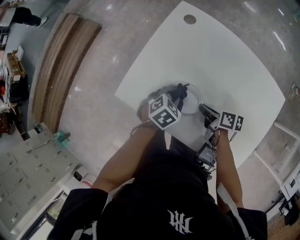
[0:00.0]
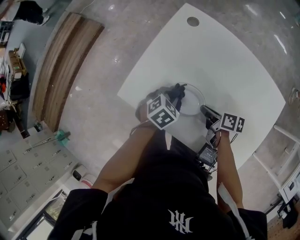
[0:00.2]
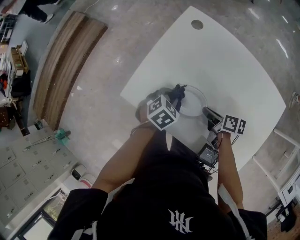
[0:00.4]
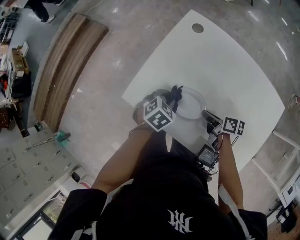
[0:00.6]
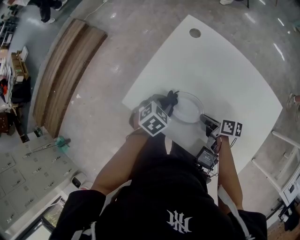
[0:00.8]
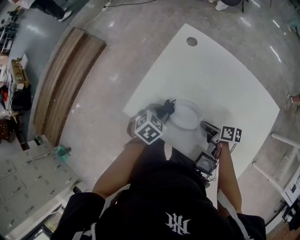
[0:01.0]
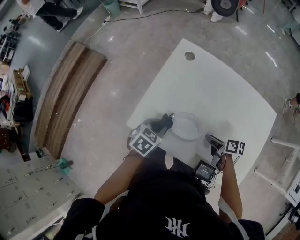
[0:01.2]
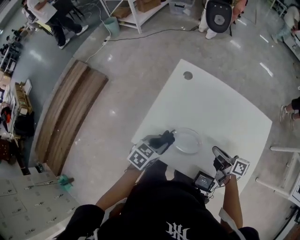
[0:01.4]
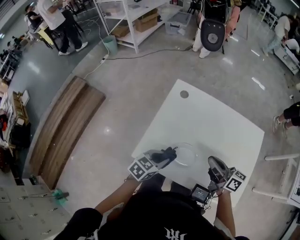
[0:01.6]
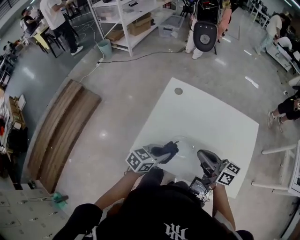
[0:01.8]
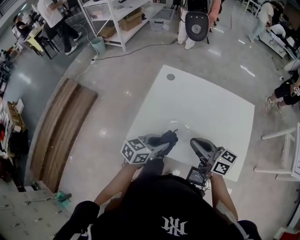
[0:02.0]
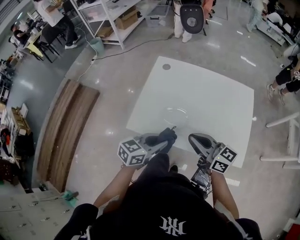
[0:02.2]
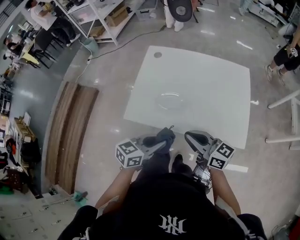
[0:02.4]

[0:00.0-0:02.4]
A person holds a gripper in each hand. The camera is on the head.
0:00.0 to 0:01.2: The left gripper travels to the left and upward by roughly 10 cm.
0:01.2 to 0:02.4: The right gripper shifts about 30 cm upward and backward, tilts its fingers approximately 30 degrees upward, and closes up, while the left gripper goes roughly 30 cm backward, upward and to the right, and points its fingers some 30 degrees further upward.

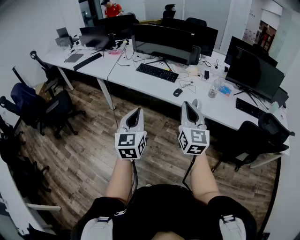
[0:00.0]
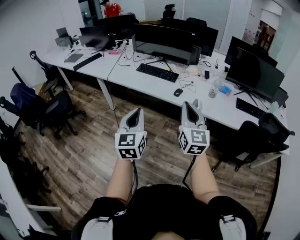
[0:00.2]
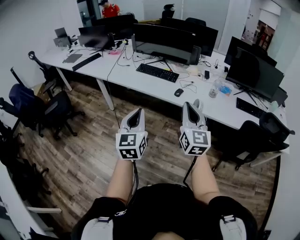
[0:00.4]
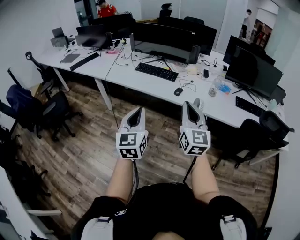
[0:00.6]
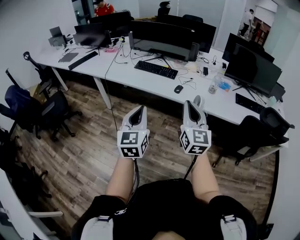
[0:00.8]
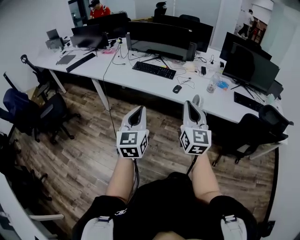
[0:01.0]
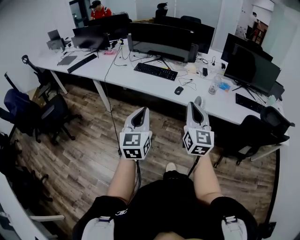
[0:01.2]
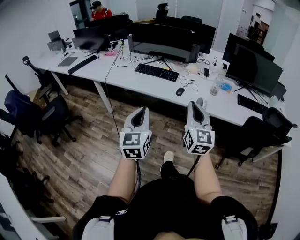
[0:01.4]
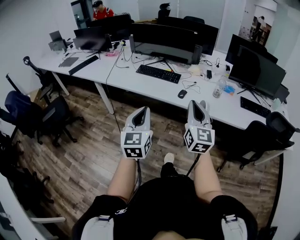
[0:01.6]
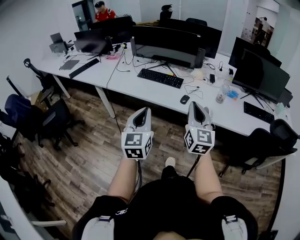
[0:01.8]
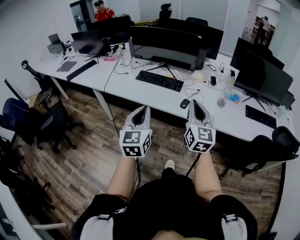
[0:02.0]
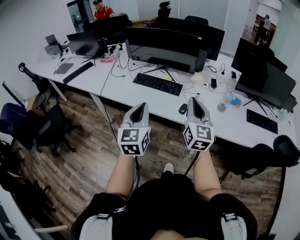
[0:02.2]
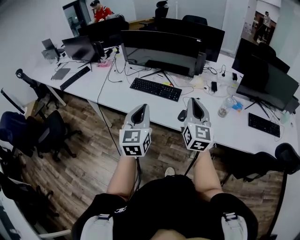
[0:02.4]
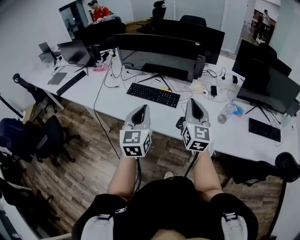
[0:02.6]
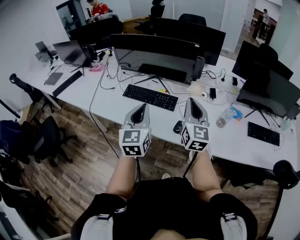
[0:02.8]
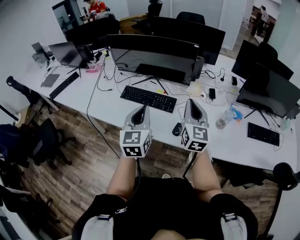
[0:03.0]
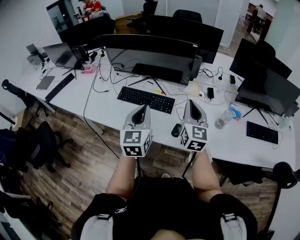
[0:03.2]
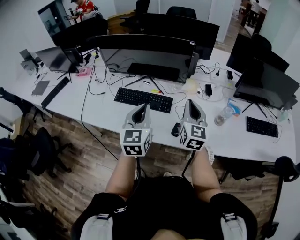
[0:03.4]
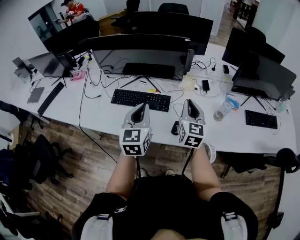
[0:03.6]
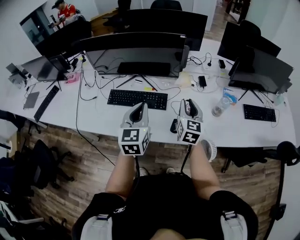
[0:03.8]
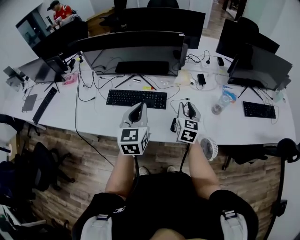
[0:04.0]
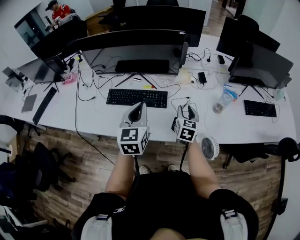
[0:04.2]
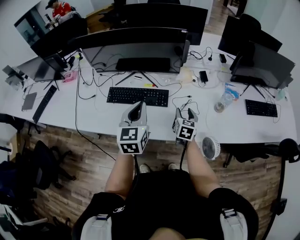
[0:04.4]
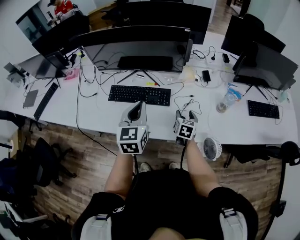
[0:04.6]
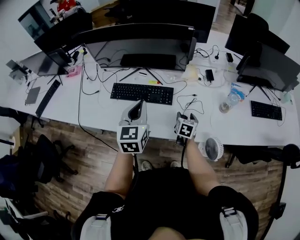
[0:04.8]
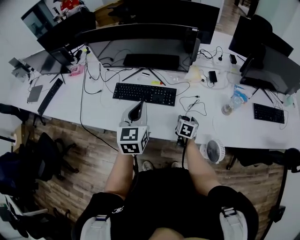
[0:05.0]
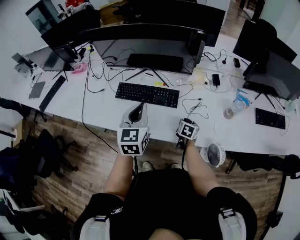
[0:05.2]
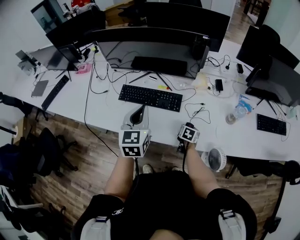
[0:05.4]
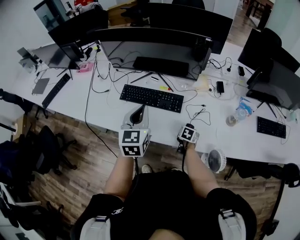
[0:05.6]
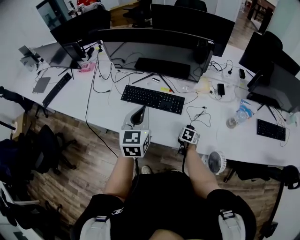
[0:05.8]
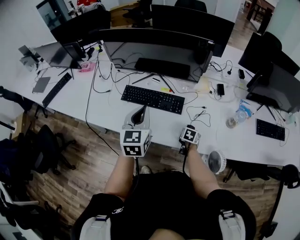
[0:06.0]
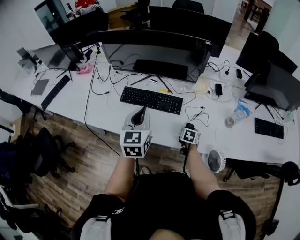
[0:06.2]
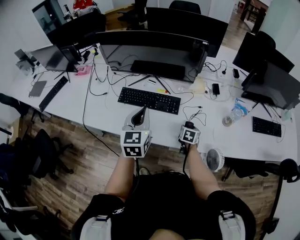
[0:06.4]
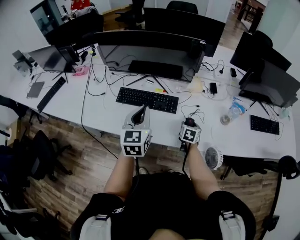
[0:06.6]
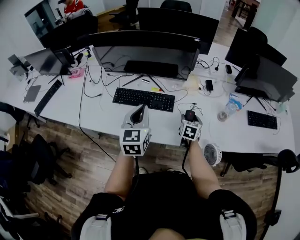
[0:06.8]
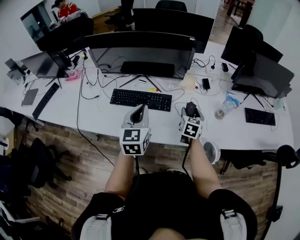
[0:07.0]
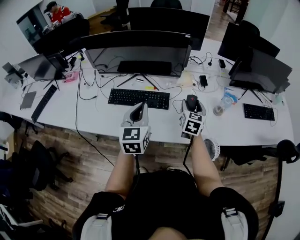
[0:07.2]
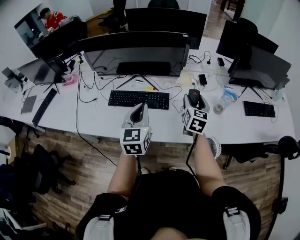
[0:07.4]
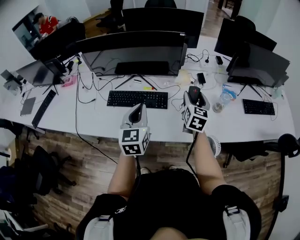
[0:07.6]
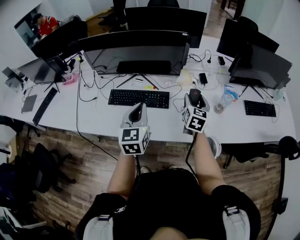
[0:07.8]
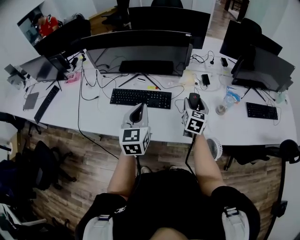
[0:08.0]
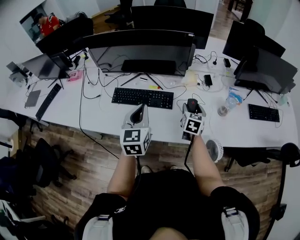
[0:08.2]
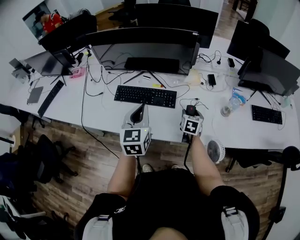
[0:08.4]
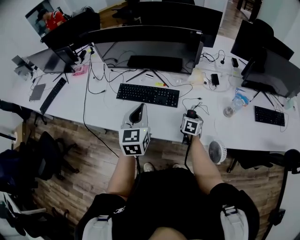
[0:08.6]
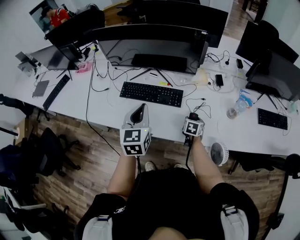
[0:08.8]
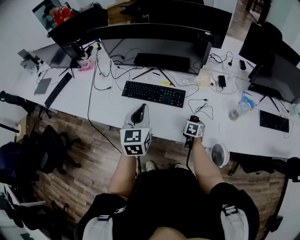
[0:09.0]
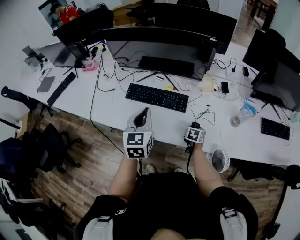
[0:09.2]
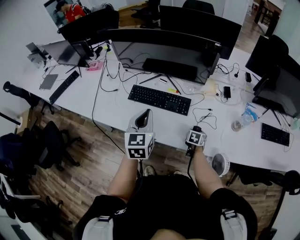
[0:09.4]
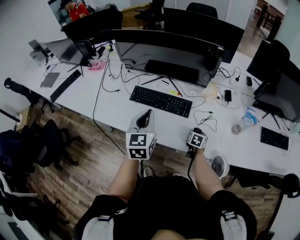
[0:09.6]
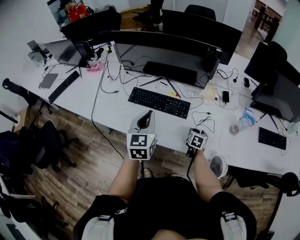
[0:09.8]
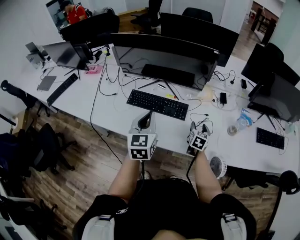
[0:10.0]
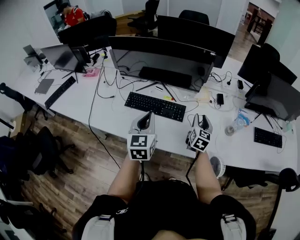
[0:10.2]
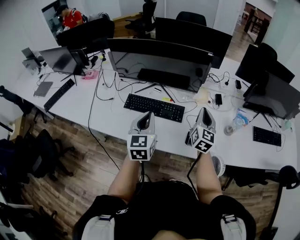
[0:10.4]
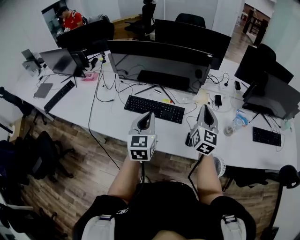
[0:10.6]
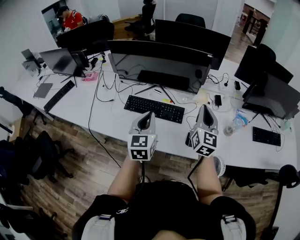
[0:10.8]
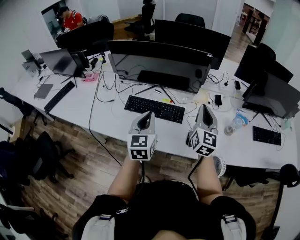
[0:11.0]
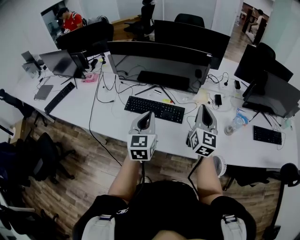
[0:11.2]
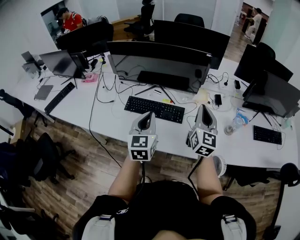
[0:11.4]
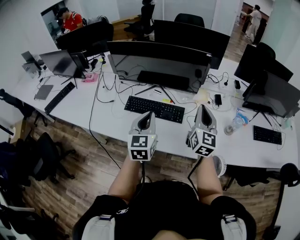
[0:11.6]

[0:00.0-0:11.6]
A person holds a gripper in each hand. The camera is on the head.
0:00.0 to 0:01.4: The grippers make only small movements.
0:01.4 to 0:02.8: The two grippers go about 40 cm forward.
0:02.8 to 0:04.4: The left gripper heads forward and downward, covering some 15 cm. Meanwhile the right gripper heads downward, covering approximately 25 cm, angles its fingers downward, by approximately 30 degrees, and opens.
0:04.4 to 0:05.8: The left gripper goes about 5 cm to the left. The right gripper moves downward, approximately 20 cm, and turns by approximately 30 degrees.
0:05.8 to 0:07.2: The right gripper moves upward, roughly 25 cm, and points its fingers approximately 40 degrees further upward.
0:07.2 to 0:08.8: The right gripper heads downward, covering about 20 cm, and turns by approximately 30 degrees.
0:08.8 to 0:10.2: The right gripper heads upward, covering roughly 20 cm, tips its fingers upward by some 30 degrees, and closes its fingers.
0:10.2 to 0:11.6: The right gripper goes some 15 cm upward, and closes up.

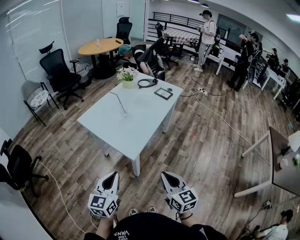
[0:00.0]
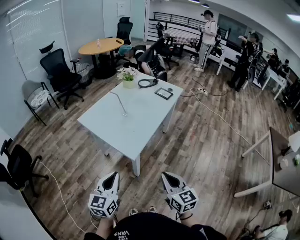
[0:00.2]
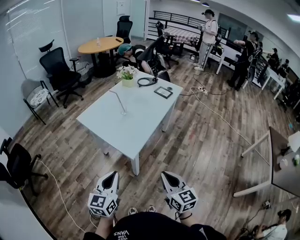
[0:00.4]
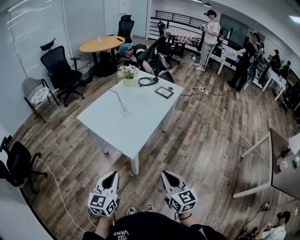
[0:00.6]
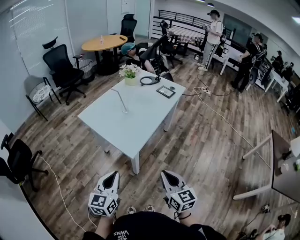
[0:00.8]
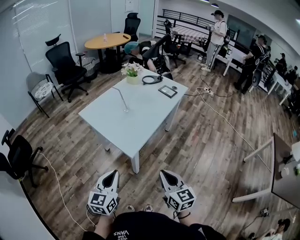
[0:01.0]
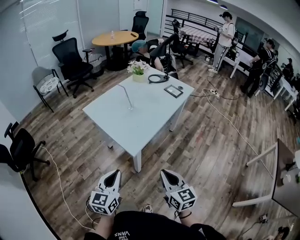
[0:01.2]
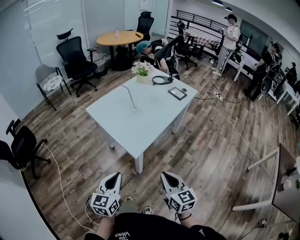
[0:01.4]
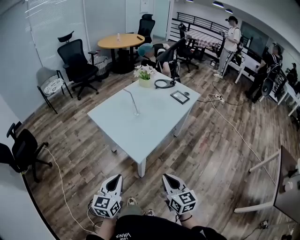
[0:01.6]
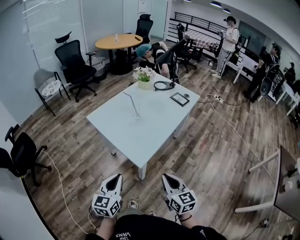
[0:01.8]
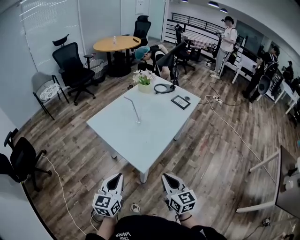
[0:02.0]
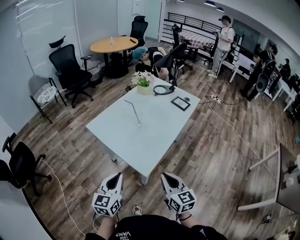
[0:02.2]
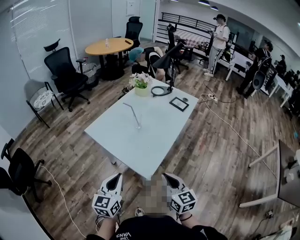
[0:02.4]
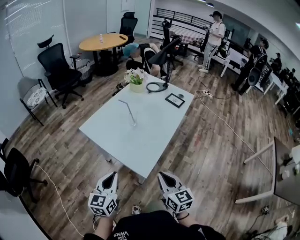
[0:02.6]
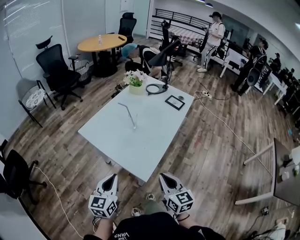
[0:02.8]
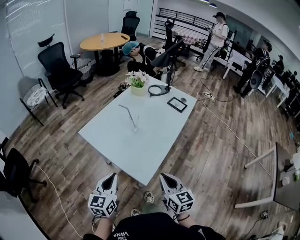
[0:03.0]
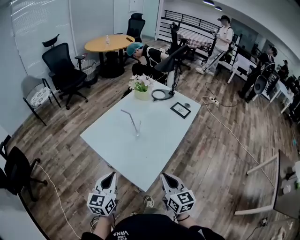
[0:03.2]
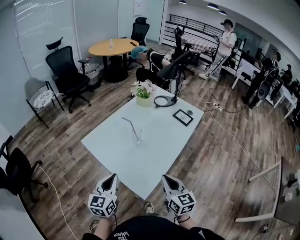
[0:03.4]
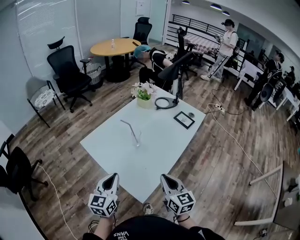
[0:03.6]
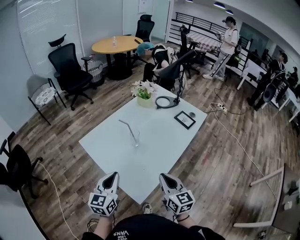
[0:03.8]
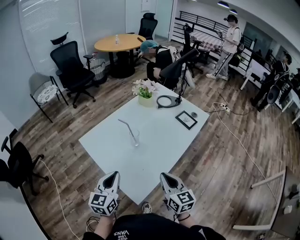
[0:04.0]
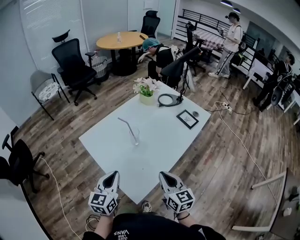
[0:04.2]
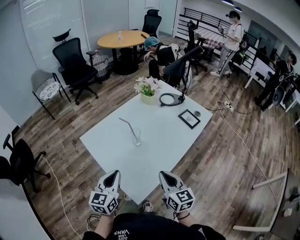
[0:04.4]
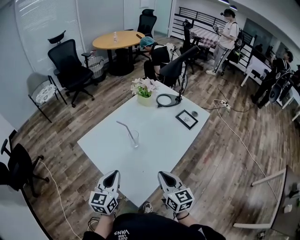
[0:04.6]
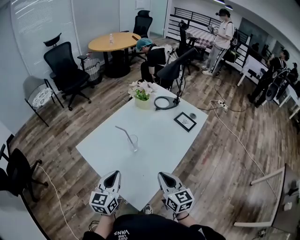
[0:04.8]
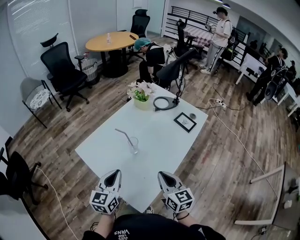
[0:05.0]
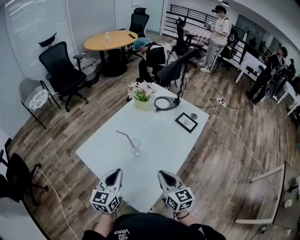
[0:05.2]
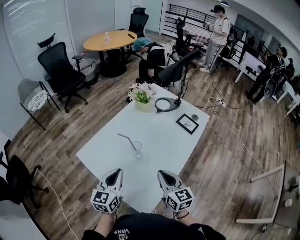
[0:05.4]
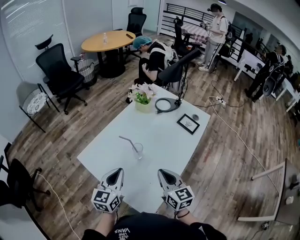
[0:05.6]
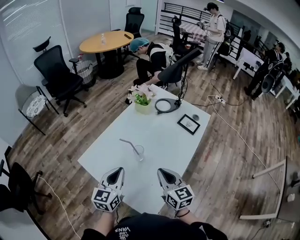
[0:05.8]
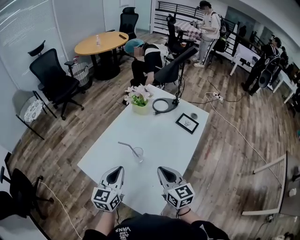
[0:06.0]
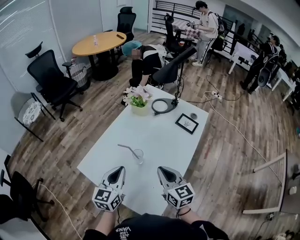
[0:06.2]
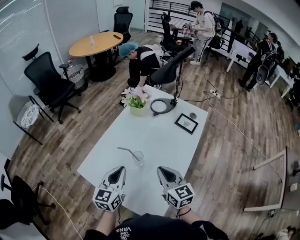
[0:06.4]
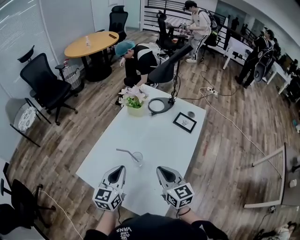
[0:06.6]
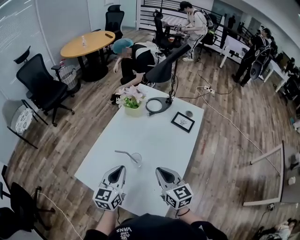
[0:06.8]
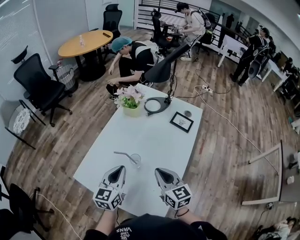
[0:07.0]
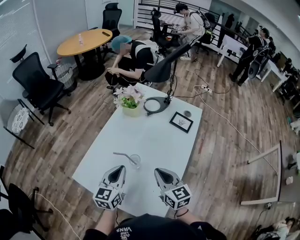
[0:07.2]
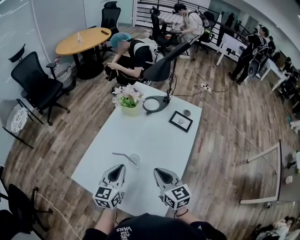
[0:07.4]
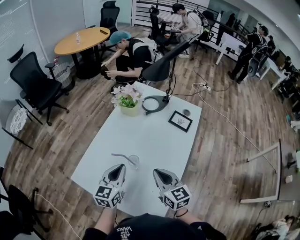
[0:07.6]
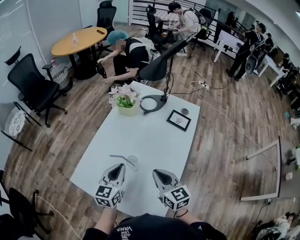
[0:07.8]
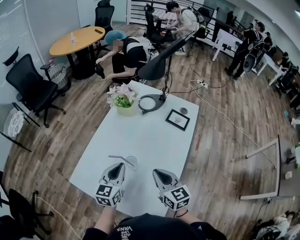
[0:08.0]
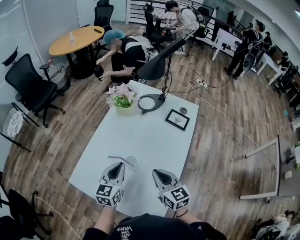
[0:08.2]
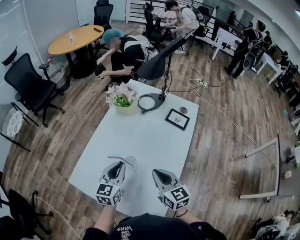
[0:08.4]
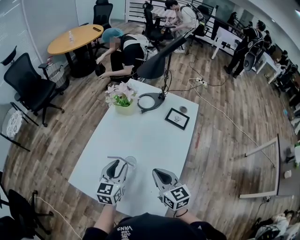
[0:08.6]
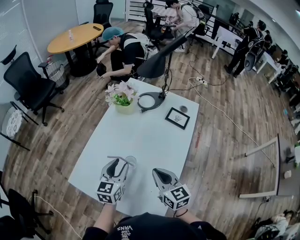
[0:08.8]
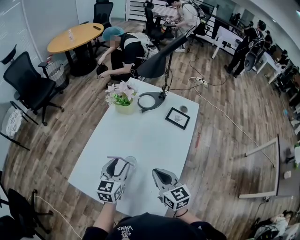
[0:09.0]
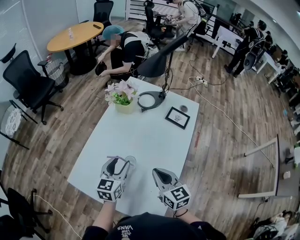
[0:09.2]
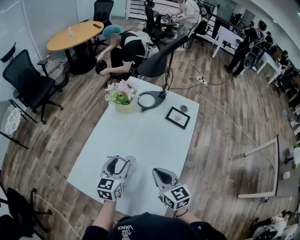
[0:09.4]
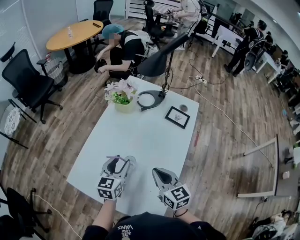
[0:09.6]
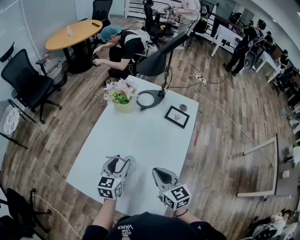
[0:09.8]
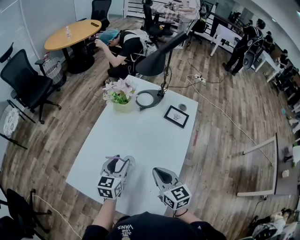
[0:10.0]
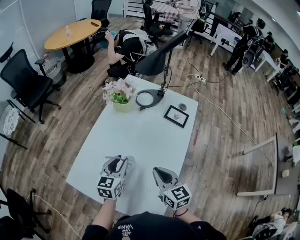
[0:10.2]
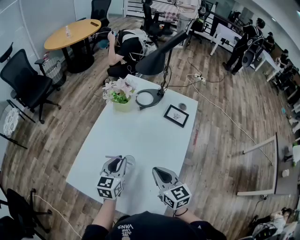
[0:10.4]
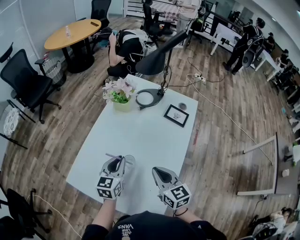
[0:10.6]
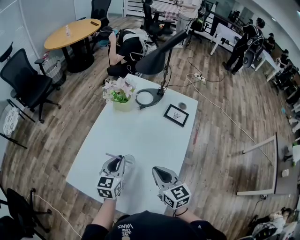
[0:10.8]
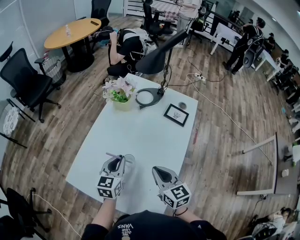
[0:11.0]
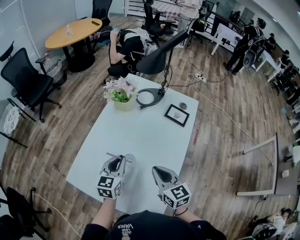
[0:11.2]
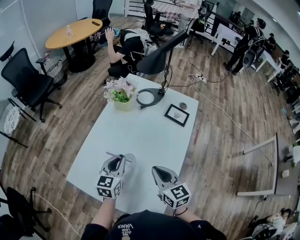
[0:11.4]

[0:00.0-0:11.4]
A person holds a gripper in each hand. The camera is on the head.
0:00.0 to 0:01.4: The grippers stay close to where they were, moving slightly.
0:01.4 to 0:02.8: The two grippers go roughly 15 cm forward and to the left.
0:02.8 to 0:04.2: The left gripper travels forward and to the right by approximately 15 cm. The right gripper travels forward by roughly 15 cm.
0:04.2 to 0:05.6: Both grippers travel together forward, approximately 10 cm.
0:05.6 to 0:07.2: The left gripper goes roughly 10 cm forward, while the right gripper shifts roughly 5 cm forward.
0:07.2 to 0:08.6: The left gripper changes place by approximately 5 cm, and opens up.
0:08.6 to 0:10.0: The grippers move only a little.
0:10.0 to 0:11.4: The left gripper closes its fingers.
